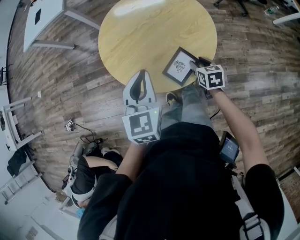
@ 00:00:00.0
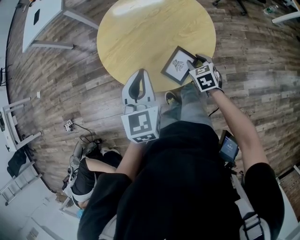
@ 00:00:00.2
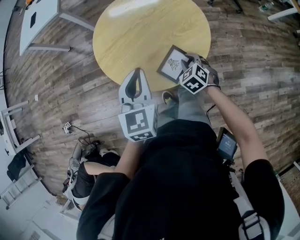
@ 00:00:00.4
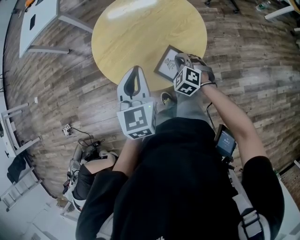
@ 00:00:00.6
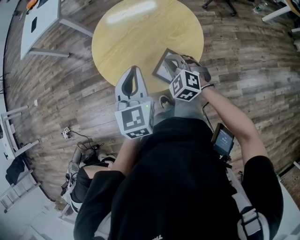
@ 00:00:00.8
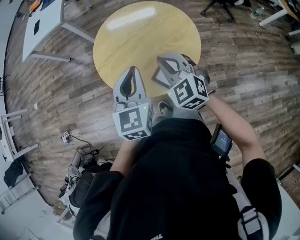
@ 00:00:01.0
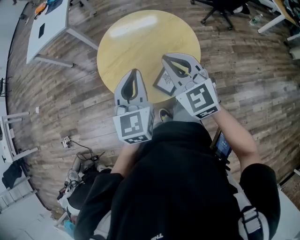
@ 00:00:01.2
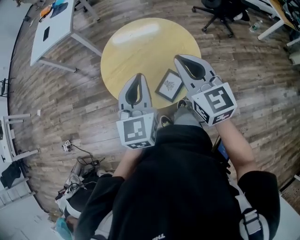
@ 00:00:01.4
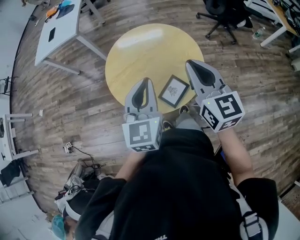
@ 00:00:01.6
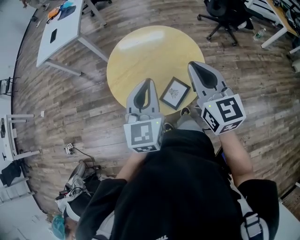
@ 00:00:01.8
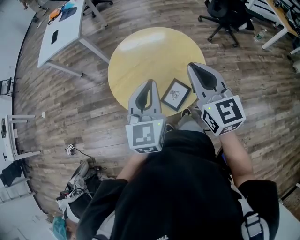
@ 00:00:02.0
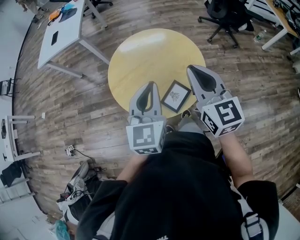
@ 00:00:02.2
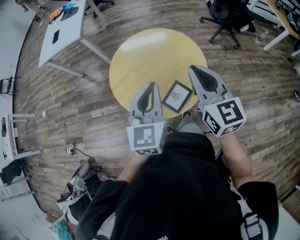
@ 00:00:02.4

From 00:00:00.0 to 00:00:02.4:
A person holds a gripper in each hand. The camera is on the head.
From 00:00:00.0 to 00:00:01.2: The right gripper shifts about 30 cm upward, tips its fingers upward by about 30 degrees, and closes its fingers; the left gripper is displaced upward by some 10 cm.
From 00:00:01.2 to 00:00:02.4: The right gripper heads to the right and upward, covering approximately 10 cm, and rotates some 20 degrees.

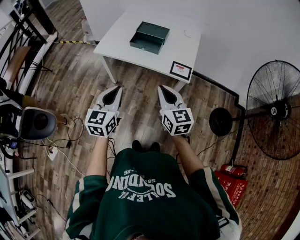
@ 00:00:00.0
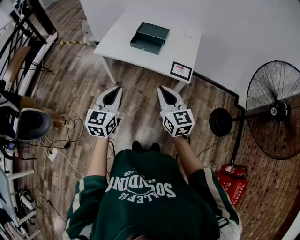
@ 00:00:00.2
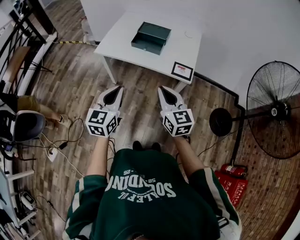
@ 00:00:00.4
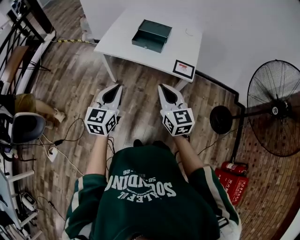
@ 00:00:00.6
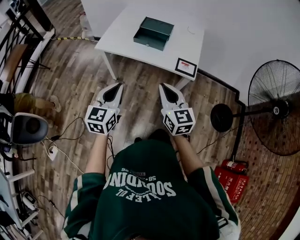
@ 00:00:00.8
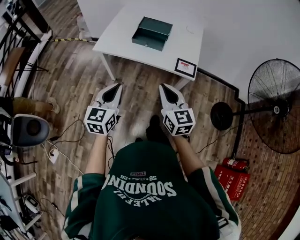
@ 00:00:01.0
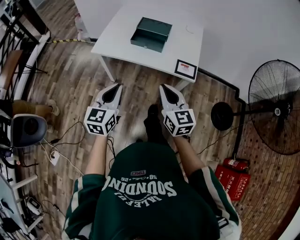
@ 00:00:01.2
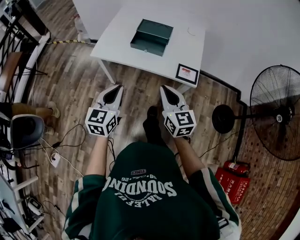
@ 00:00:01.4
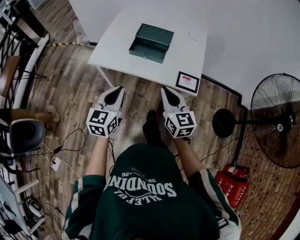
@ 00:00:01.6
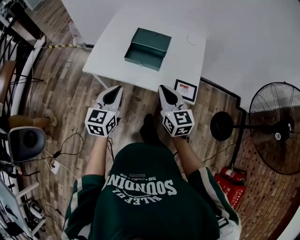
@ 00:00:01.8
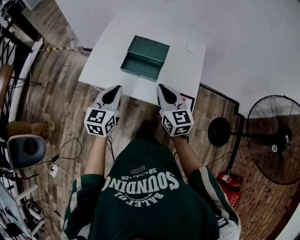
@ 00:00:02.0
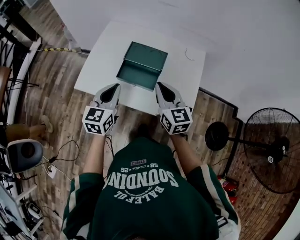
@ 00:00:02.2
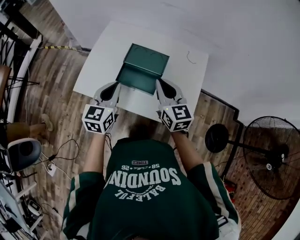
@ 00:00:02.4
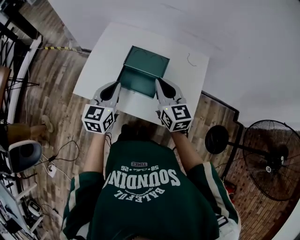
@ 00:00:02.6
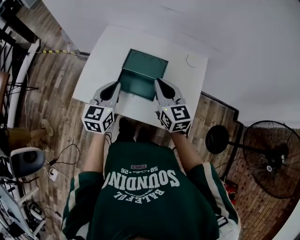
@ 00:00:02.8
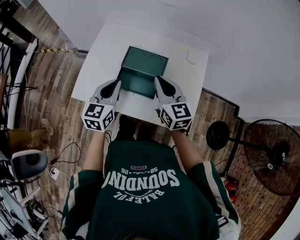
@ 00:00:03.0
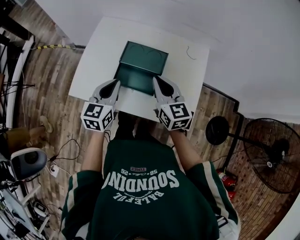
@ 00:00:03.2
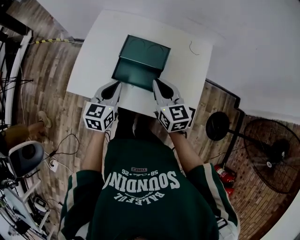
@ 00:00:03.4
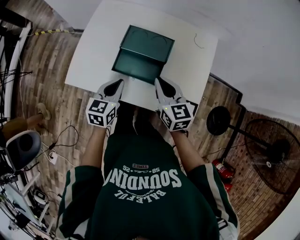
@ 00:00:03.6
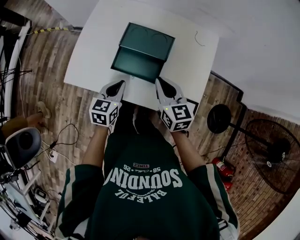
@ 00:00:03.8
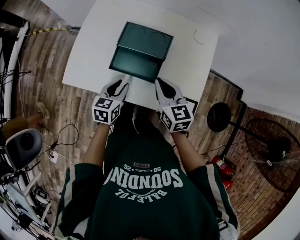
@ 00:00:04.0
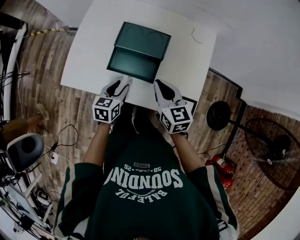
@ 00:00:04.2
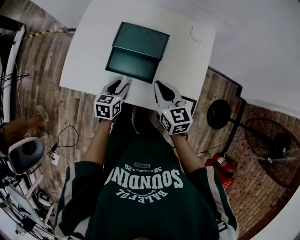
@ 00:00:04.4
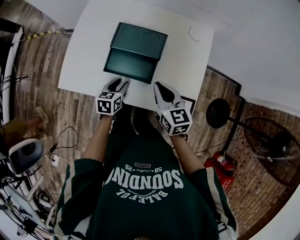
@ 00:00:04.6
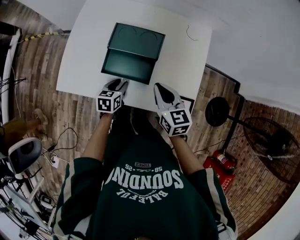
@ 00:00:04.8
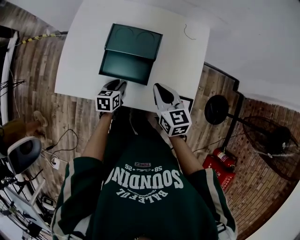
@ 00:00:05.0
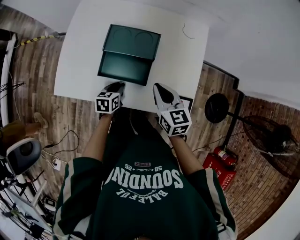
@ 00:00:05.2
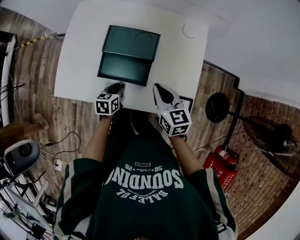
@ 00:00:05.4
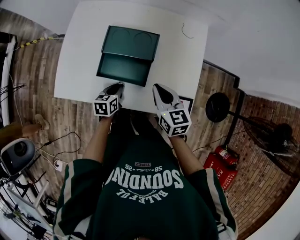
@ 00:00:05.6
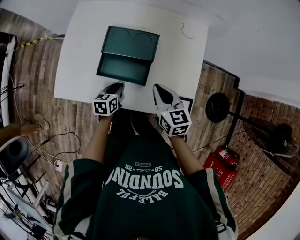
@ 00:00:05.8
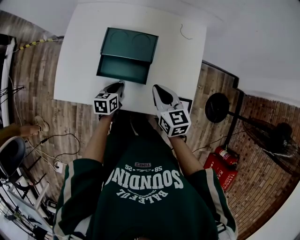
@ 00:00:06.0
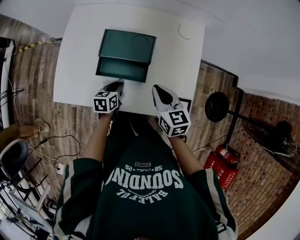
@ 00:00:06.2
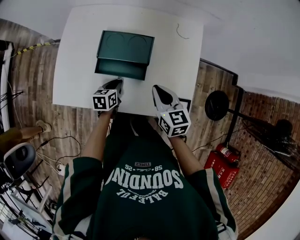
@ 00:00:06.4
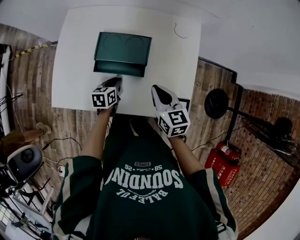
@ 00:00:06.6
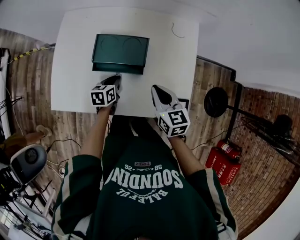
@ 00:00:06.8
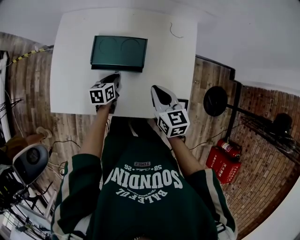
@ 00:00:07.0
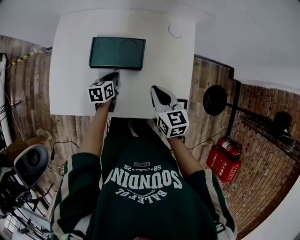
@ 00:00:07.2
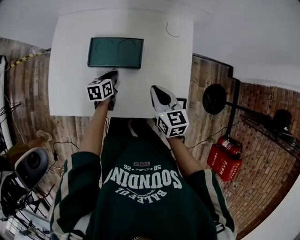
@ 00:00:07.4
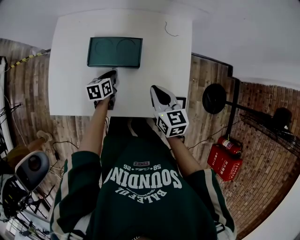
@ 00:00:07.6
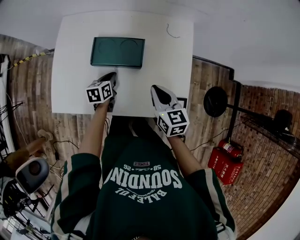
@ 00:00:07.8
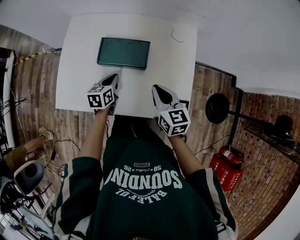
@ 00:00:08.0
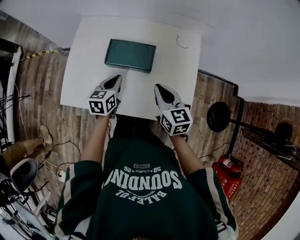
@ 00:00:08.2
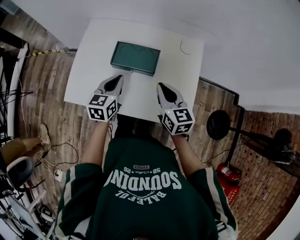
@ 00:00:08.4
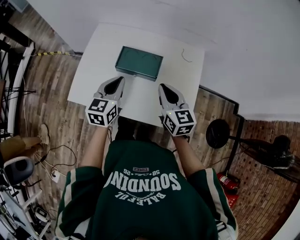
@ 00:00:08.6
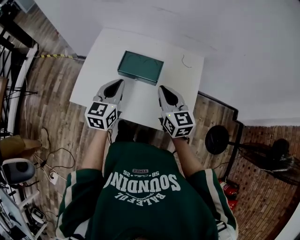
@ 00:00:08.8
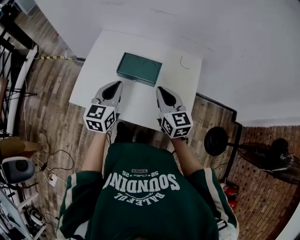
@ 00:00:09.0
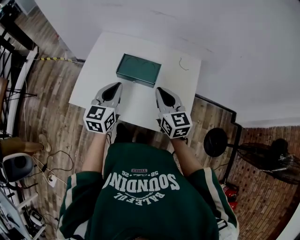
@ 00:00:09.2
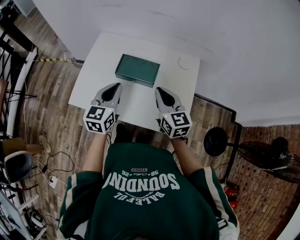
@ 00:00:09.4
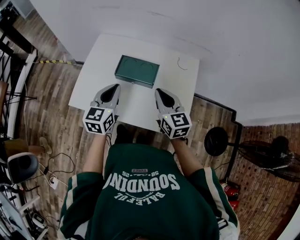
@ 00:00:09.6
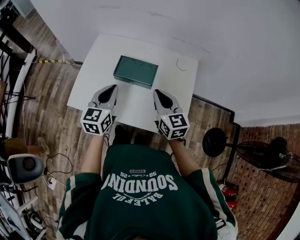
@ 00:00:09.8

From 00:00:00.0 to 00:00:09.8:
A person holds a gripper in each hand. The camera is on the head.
From 00:00:00.0 to 00:00:01.4: The two grippers go about 10 cm forward.
From 00:00:01.4 to 00:00:02.8: Both grippers travel together forward, some 35 cm.
From 00:00:02.8 to 00:00:04.2: The left gripper shifts roughly 20 cm downward, turns by about 30 degrees, and opens. The right gripper is displaced downward by about 10 cm.
From 00:00:04.2 to 00:00:05.6: The left gripper goes about 10 cm downward, and closes up.
From 00:00:05.6 to 00:00:07.0: The left gripper heads forward, covering approximately 10 cm.
From 00:00:07.0 to 00:00:08.4: The left gripper is displaced upward by approximately 20 cm, and rotates roughly 30 degrees; the right gripper heads upward, covering about 10 cm.
From 00:00:08.4 to 00:00:09.8: The left gripper is displaced upward by about 10 cm. The right gripper changes place by some 5 cm.

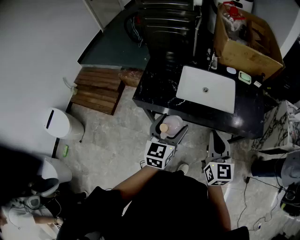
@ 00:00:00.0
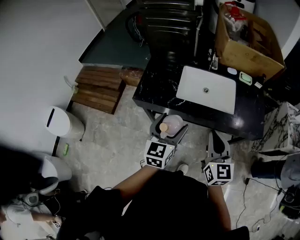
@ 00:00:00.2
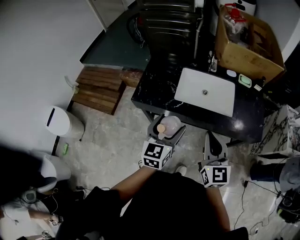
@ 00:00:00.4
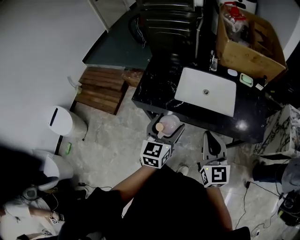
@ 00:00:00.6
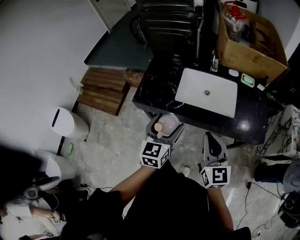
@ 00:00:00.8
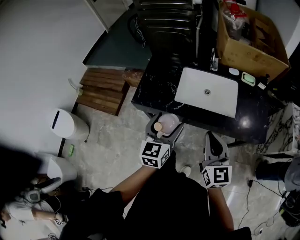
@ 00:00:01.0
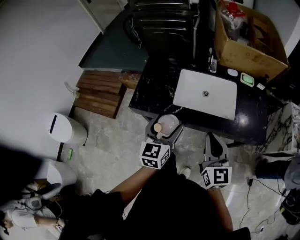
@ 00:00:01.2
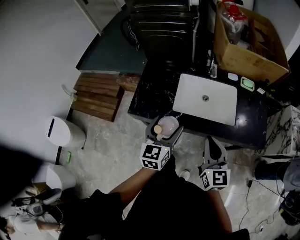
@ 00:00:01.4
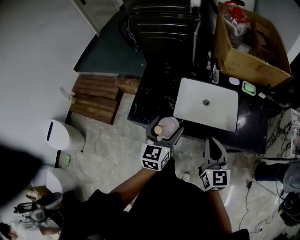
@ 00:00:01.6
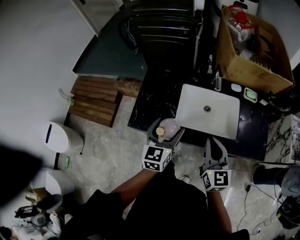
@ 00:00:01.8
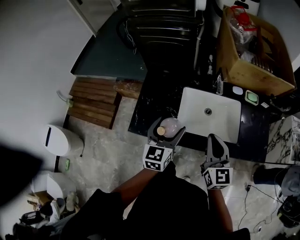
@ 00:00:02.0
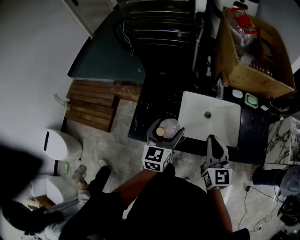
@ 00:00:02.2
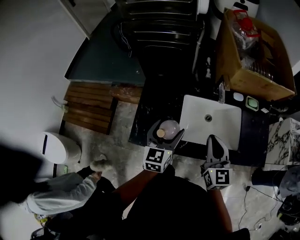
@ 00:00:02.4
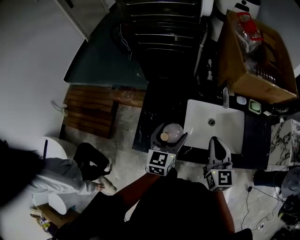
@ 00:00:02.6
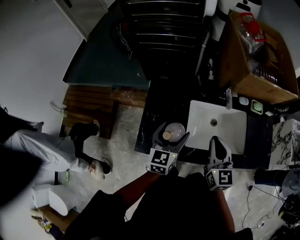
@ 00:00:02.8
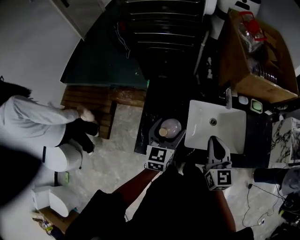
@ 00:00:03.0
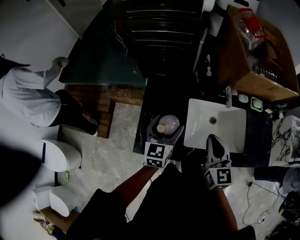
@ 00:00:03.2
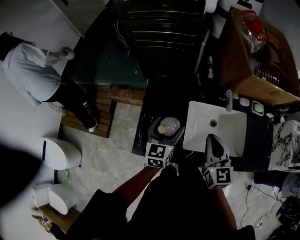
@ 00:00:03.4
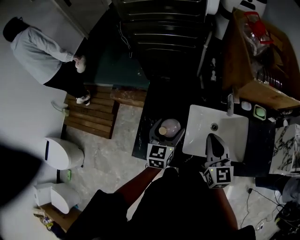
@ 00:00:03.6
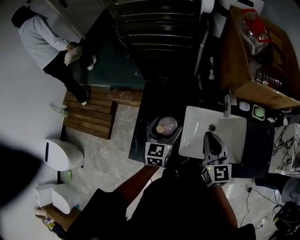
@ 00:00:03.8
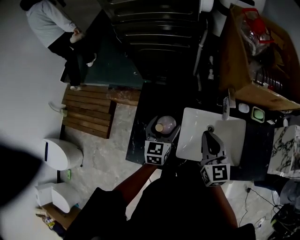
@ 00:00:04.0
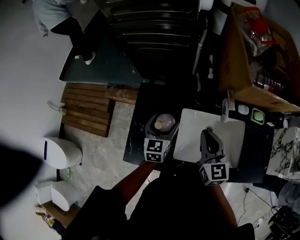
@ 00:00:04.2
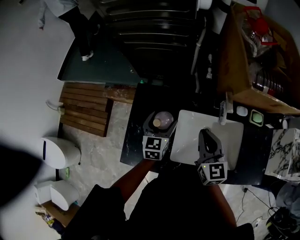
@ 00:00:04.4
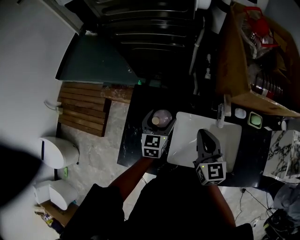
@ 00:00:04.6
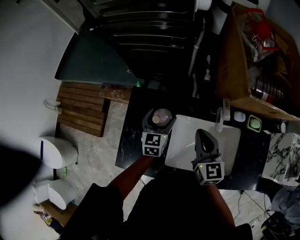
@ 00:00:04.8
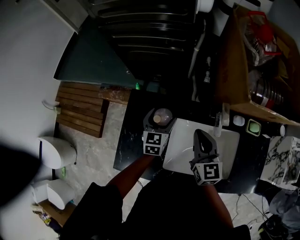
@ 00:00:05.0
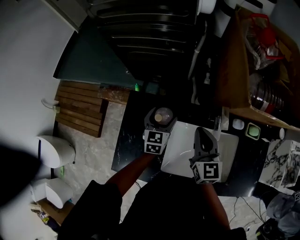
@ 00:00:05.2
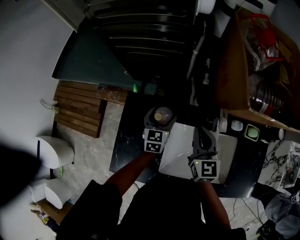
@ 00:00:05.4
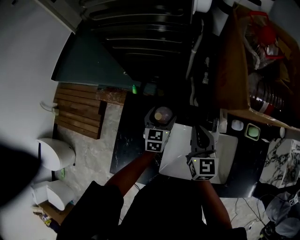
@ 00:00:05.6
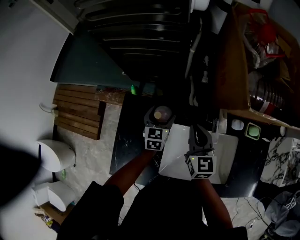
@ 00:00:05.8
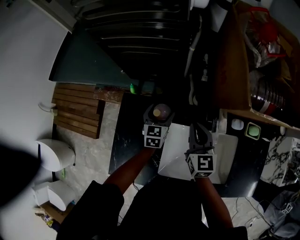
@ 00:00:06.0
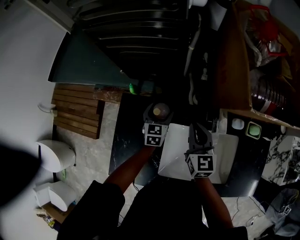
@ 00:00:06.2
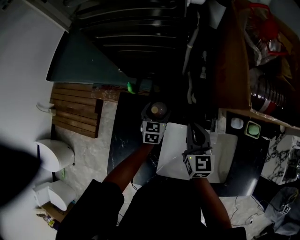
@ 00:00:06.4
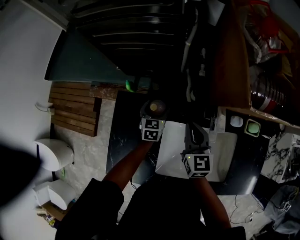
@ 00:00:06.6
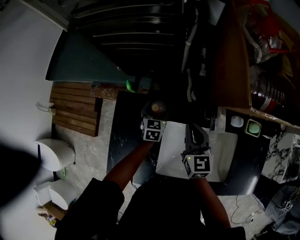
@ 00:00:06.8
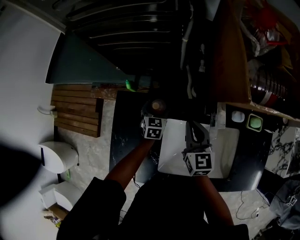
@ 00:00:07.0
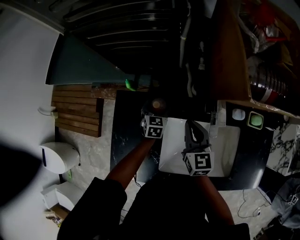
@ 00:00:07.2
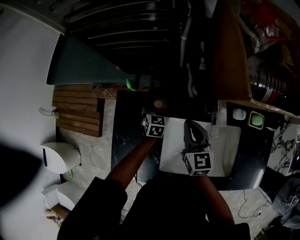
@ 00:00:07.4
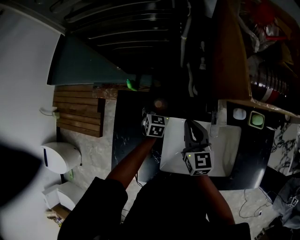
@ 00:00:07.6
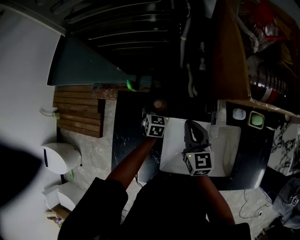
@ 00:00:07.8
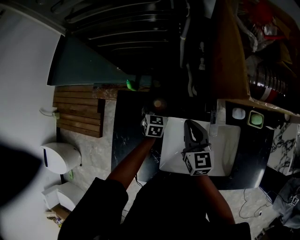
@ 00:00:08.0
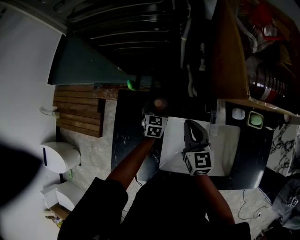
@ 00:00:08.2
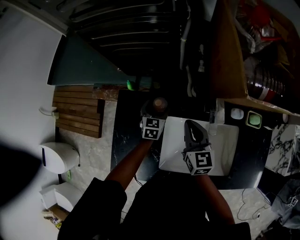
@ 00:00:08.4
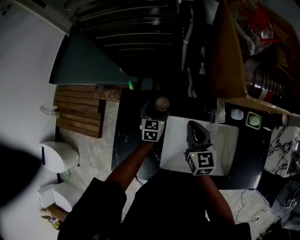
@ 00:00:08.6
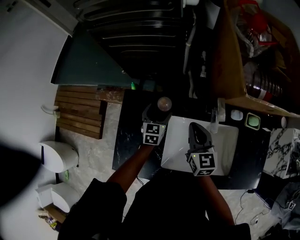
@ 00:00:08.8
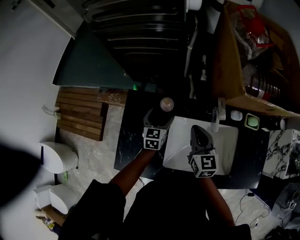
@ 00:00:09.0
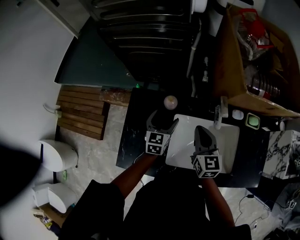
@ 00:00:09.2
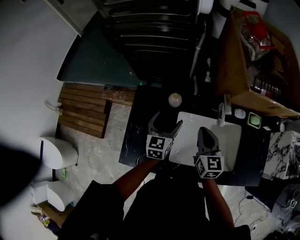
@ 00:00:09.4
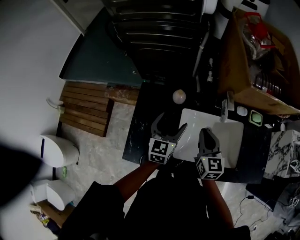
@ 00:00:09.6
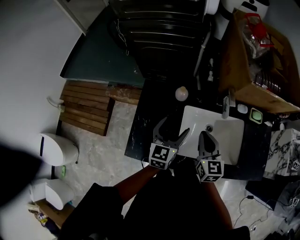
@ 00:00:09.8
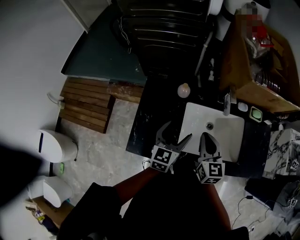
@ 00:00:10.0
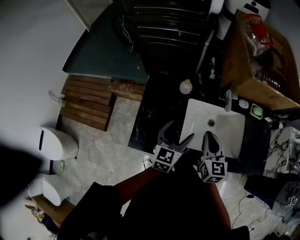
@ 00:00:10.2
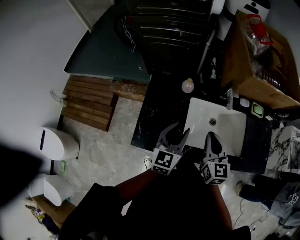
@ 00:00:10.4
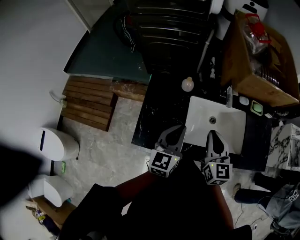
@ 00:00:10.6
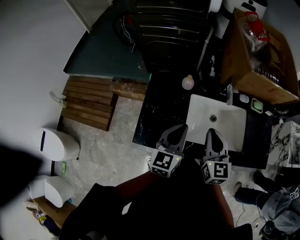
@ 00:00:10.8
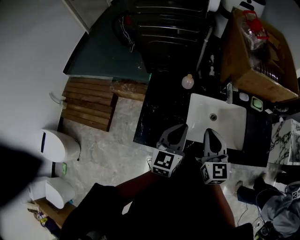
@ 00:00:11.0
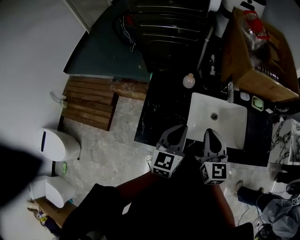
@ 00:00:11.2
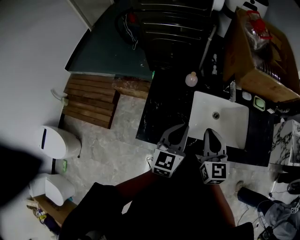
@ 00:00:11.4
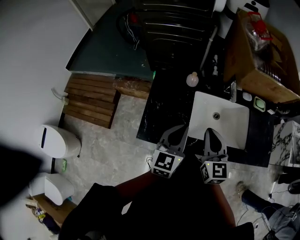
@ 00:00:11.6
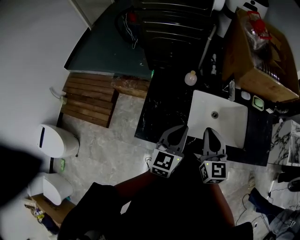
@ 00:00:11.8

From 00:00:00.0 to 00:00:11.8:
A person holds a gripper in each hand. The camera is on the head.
From 00:00:00.0 to 00:00:01.4: The grippers both shift forward by approximately 10 cm.
From 00:00:01.4 to 00:00:03.0: Both grippers move forward and to the left, approximately 25 cm.
From 00:00:03.0 to 00:00:04.4: The left gripper shifts about 15 cm forward and downward. Meanwhile the right gripper shifts roughly 15 cm forward.
From 00:00:04.4 to 00:00:06.0: Both grippers travel together forward and downward, about 15 cm.
From 00:00:06.0 to 00:00:07.4: The left gripper goes about 5 cm downward.
From 00:00:07.4 to 00:00:08.8: The left gripper shifts about 5 cm upward.
From 00:00:08.8 to 00:00:10.4: The right gripper goes roughly 20 cm backward. Meanwhile the left gripper moves backward and upward, some 30 cm, and closes its fingers.
From 00:00:10.4 to 00:00:11.8: The right gripper ends up about 5 cm from where it was. The left gripper shifts roughly 5 cm backward, and closes its fingers.
